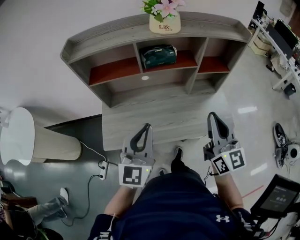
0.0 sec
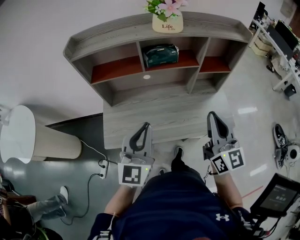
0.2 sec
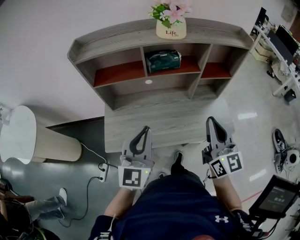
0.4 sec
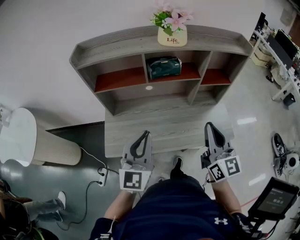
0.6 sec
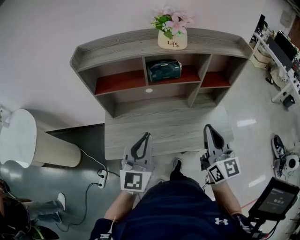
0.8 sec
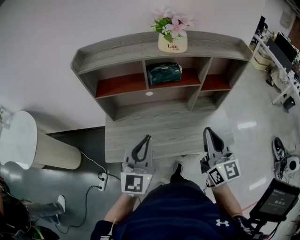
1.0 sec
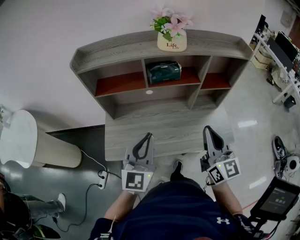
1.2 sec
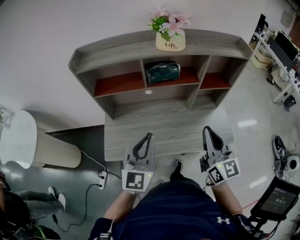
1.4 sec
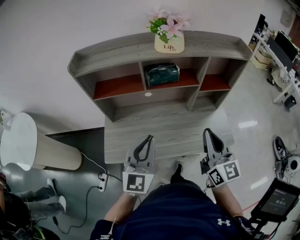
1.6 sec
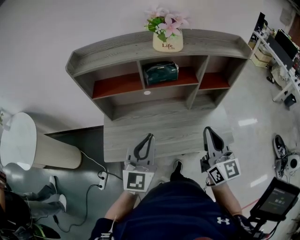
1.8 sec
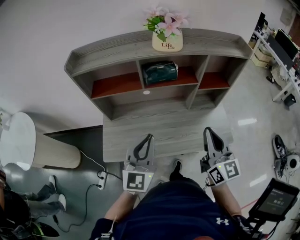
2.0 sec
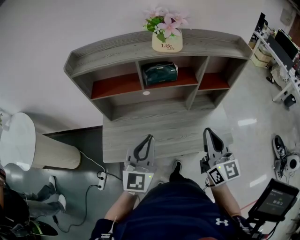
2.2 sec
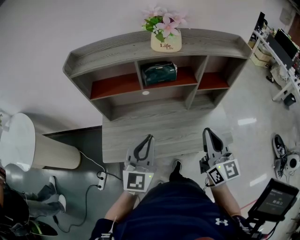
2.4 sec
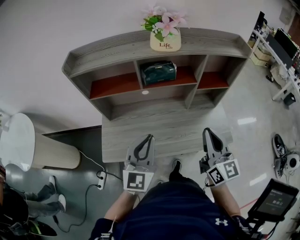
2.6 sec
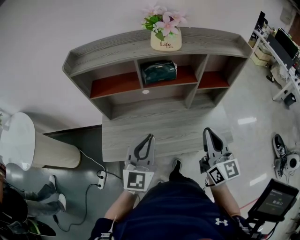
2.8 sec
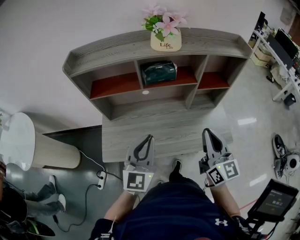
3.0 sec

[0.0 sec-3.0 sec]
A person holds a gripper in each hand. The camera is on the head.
0.0 sec to 3.0 sec: The grippers move only a little.

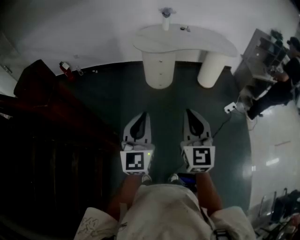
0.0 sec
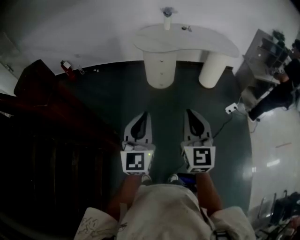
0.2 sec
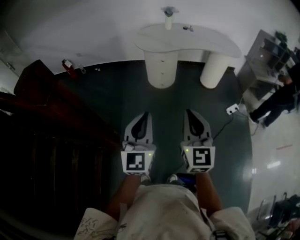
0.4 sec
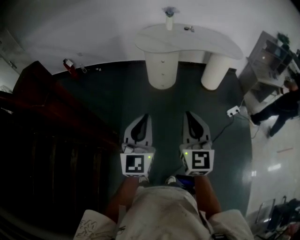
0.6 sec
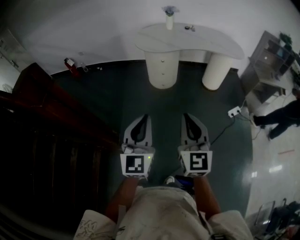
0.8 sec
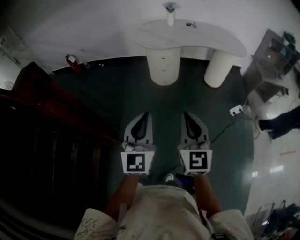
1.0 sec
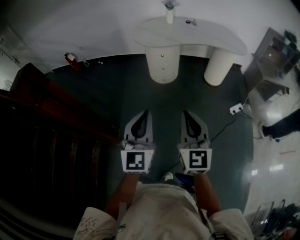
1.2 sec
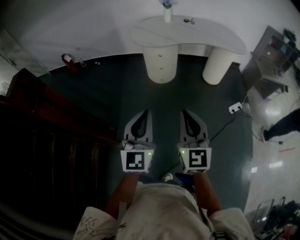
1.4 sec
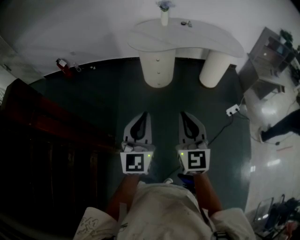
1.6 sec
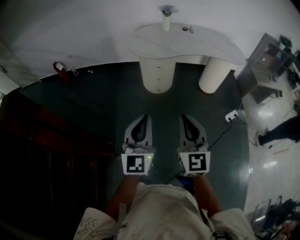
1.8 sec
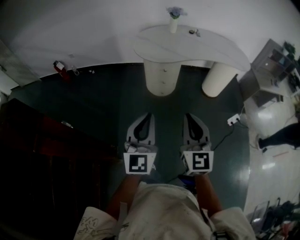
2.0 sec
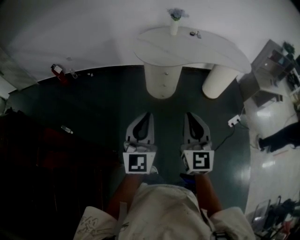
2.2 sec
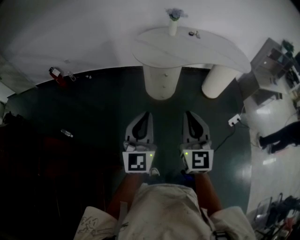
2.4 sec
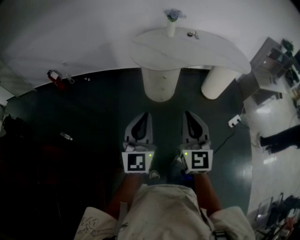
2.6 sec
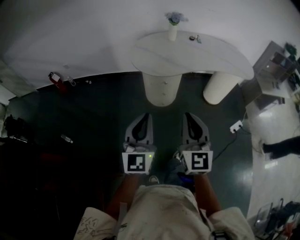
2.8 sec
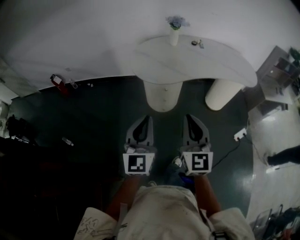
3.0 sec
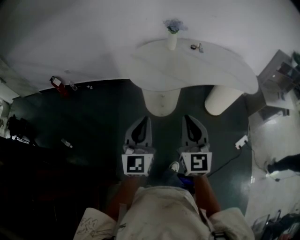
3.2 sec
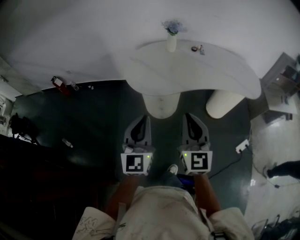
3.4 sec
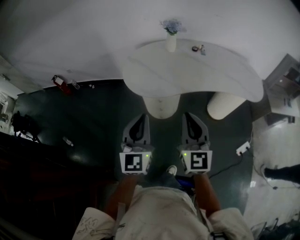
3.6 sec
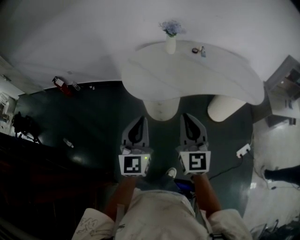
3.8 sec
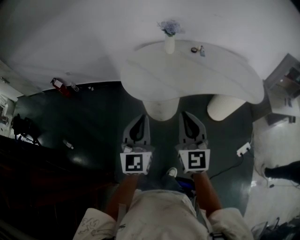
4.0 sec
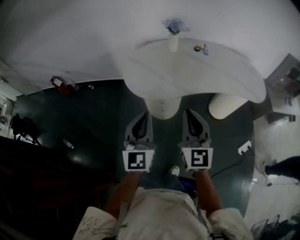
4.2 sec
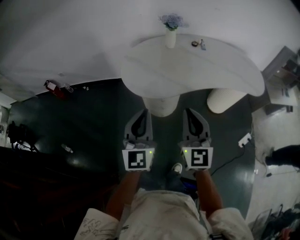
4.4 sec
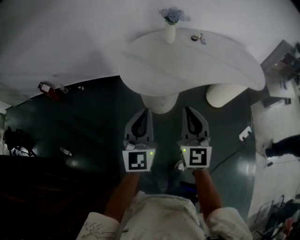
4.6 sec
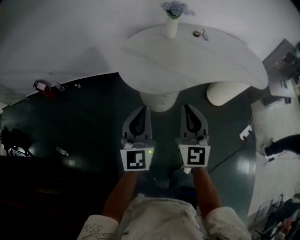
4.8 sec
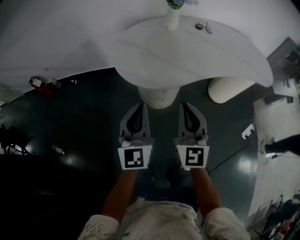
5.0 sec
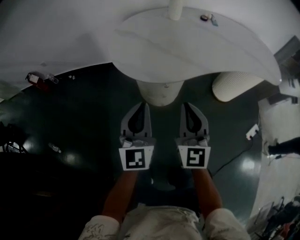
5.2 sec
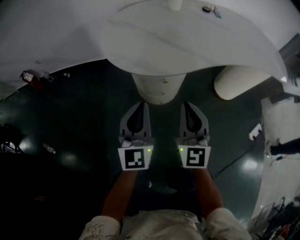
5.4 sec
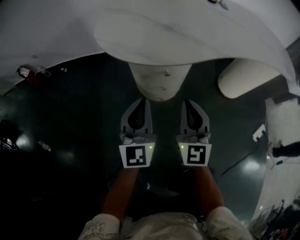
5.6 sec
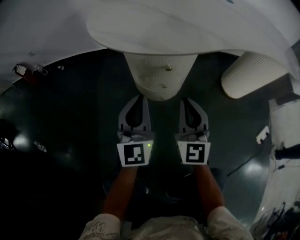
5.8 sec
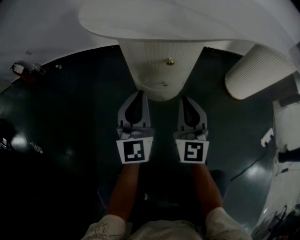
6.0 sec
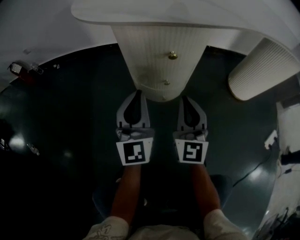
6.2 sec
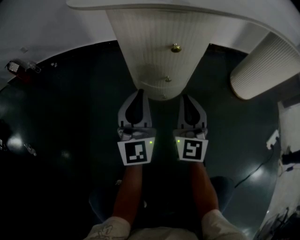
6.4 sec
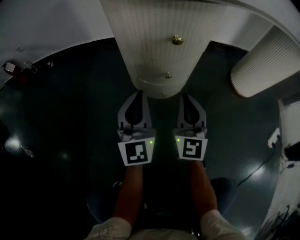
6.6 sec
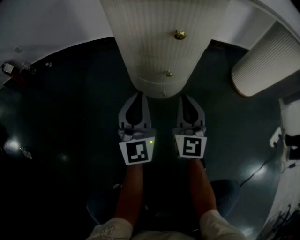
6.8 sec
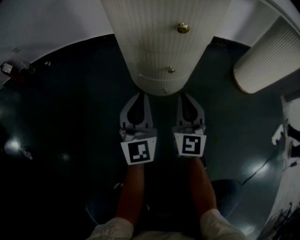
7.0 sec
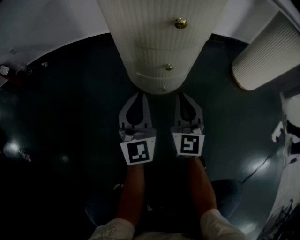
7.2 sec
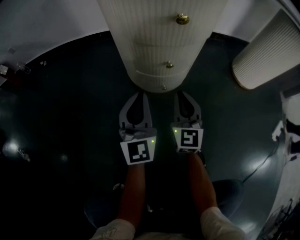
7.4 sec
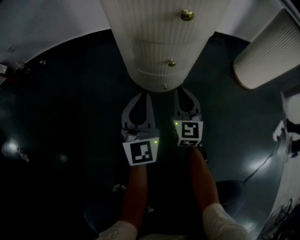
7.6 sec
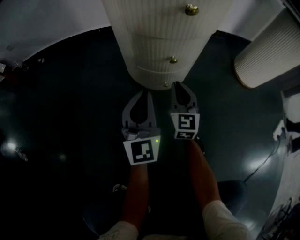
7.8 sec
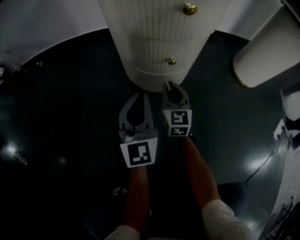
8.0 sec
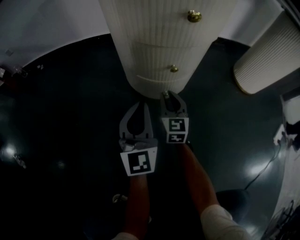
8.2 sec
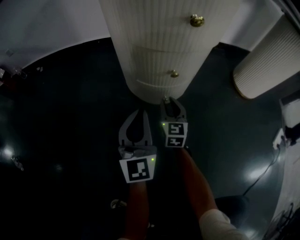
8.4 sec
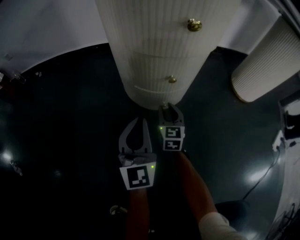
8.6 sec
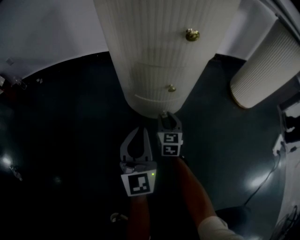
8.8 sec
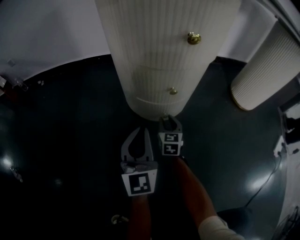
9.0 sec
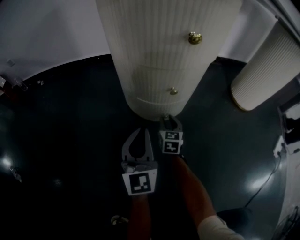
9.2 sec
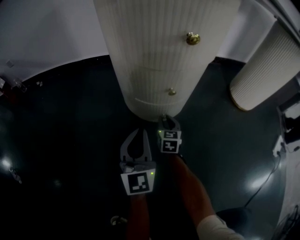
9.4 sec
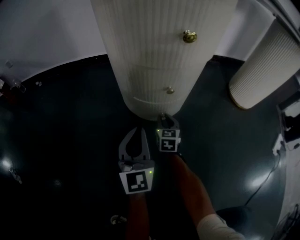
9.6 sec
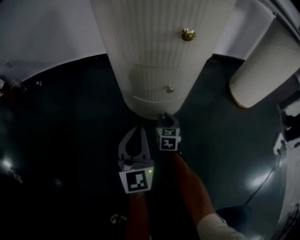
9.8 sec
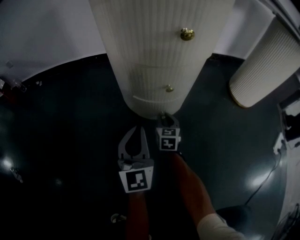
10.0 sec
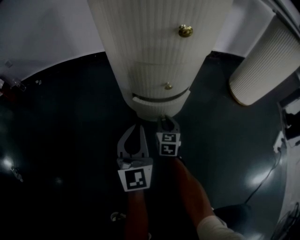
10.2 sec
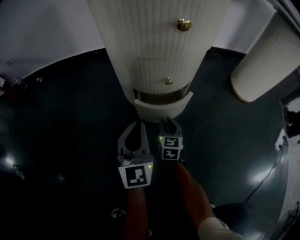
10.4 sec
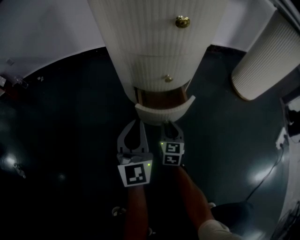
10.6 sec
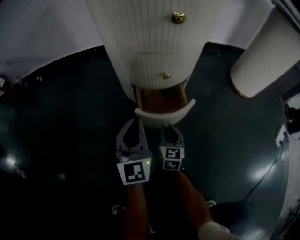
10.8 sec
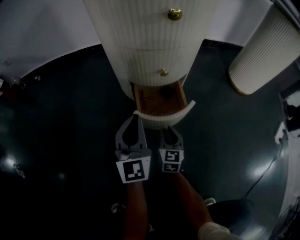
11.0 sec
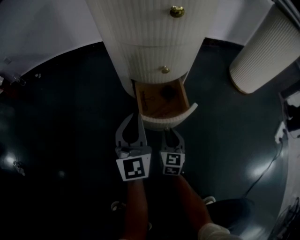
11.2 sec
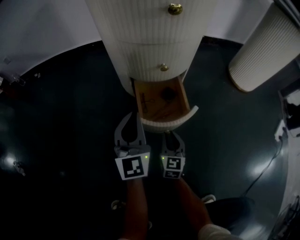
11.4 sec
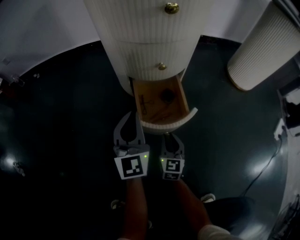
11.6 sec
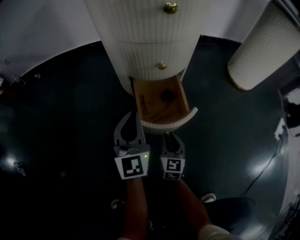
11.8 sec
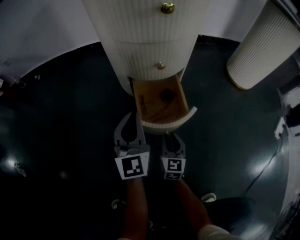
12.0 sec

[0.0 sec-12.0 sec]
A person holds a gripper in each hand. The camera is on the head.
0.0 sec to 1.6 sec: The grippers both shift forward and to the right by some 15 cm.
1.6 sec to 3.0 sec: The grippers both shift forward by approximately 30 cm.
3.0 sec to 4.4 sec: Both grippers move forward, some 20 cm.
4.4 sec to 6.0 sec: Both grippers move downward, roughly 50 cm.
6.0 sec to 7.6 sec: Both grippers move downward, about 25 cm.
7.6 sec to 9.0 sec: The right gripper is displaced downward by roughly 15 cm, changes its angle by some 20 degrees, and opens up.
9.0 sec to 10.4 sec: The grippers move only a little.
10.4 sec to 12.0 sec: The right gripper travels backward by approximately 15 cm.

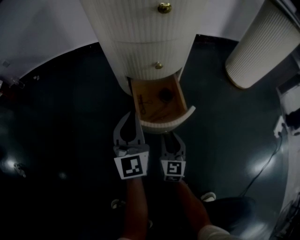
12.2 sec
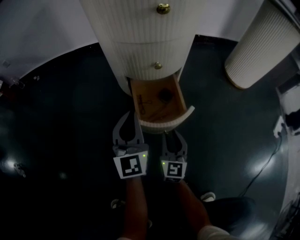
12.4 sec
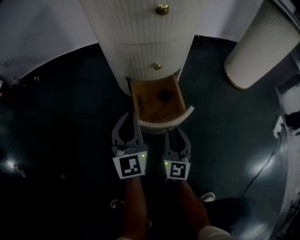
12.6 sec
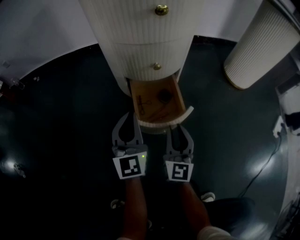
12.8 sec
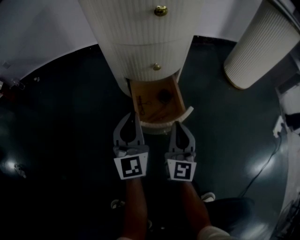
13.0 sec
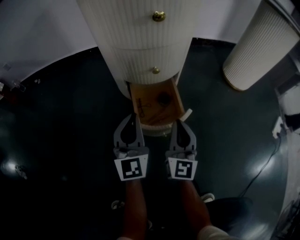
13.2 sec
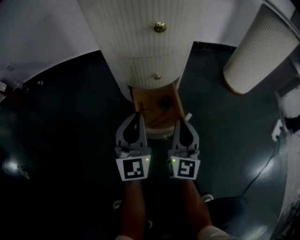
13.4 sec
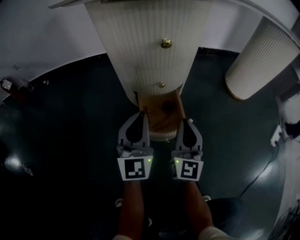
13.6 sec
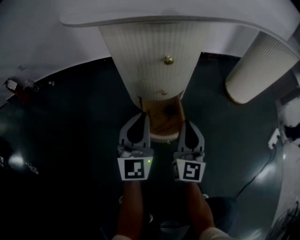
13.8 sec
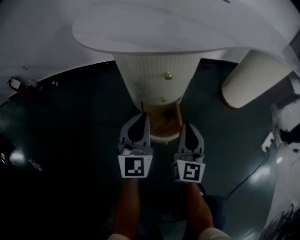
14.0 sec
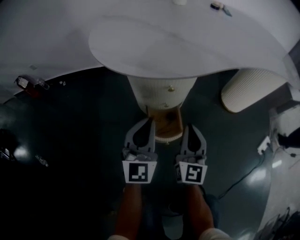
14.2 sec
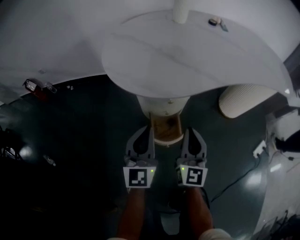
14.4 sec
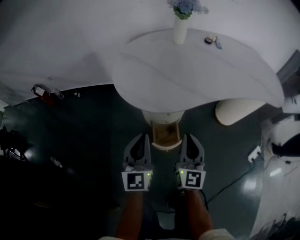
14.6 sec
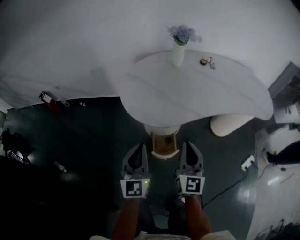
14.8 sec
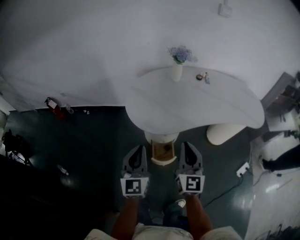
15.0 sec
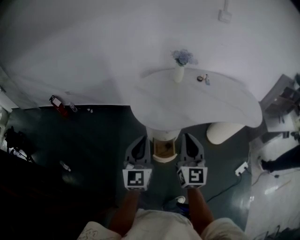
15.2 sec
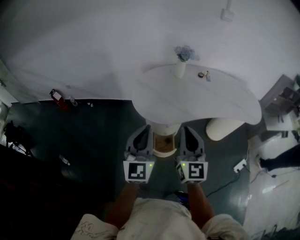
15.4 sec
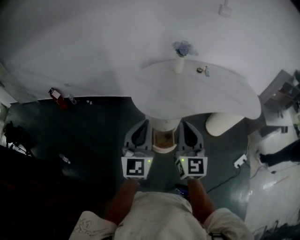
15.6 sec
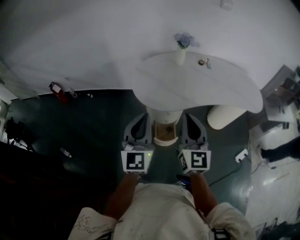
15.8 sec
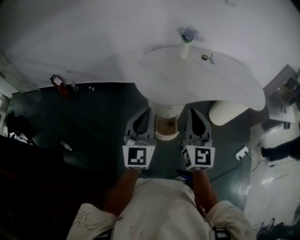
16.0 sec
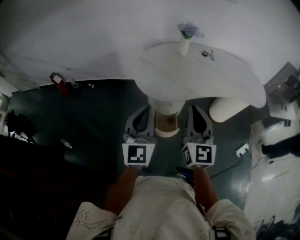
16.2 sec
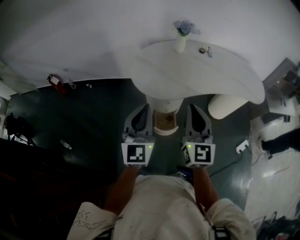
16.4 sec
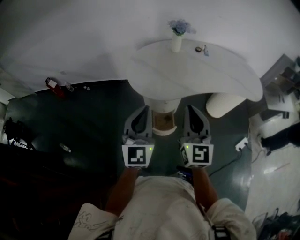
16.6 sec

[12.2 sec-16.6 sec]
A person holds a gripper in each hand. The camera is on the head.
12.2 sec to 13.6 sec: The right gripper shifts some 25 cm upward, swivels some 20 degrees, and closes; the left gripper heads upward, covering roughly 10 cm.
13.6 sec to 15.2 sec: The two grippers go about 70 cm upward.
15.2 sec to 16.6 sec: The grippers stay close to where they were, moving slightly.

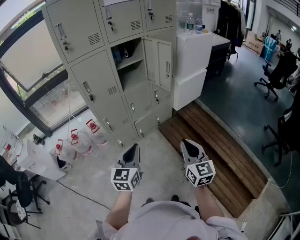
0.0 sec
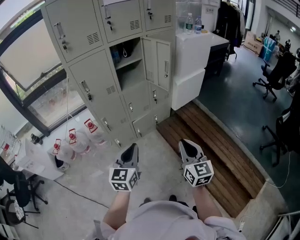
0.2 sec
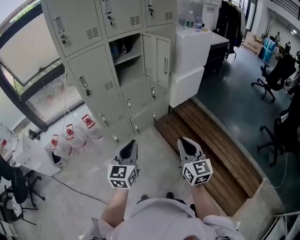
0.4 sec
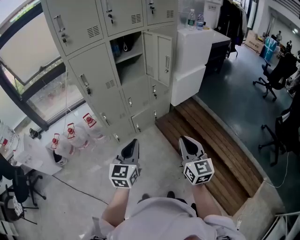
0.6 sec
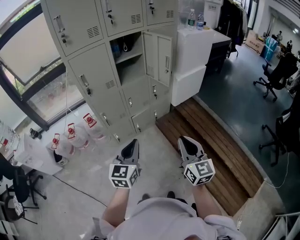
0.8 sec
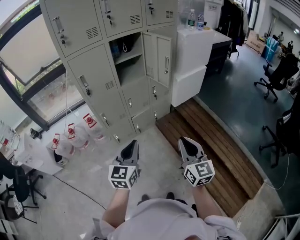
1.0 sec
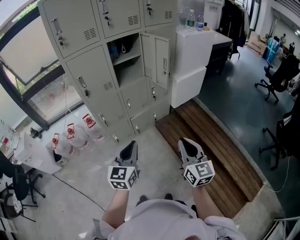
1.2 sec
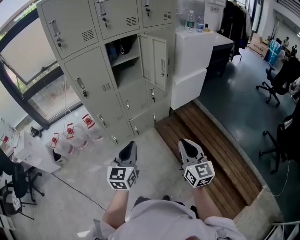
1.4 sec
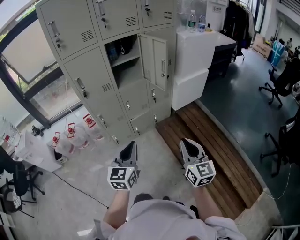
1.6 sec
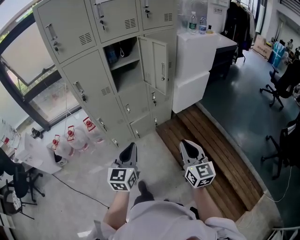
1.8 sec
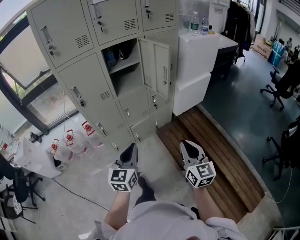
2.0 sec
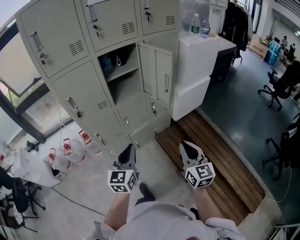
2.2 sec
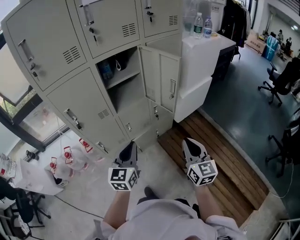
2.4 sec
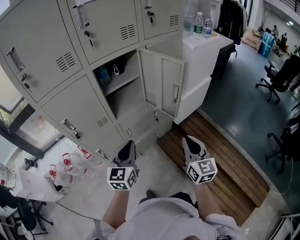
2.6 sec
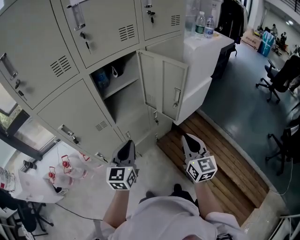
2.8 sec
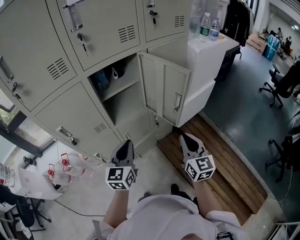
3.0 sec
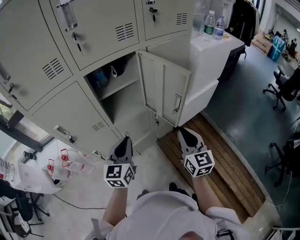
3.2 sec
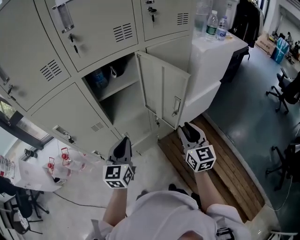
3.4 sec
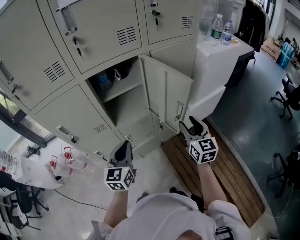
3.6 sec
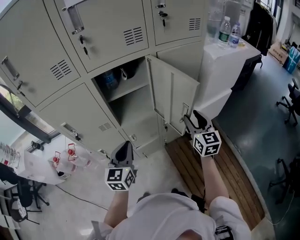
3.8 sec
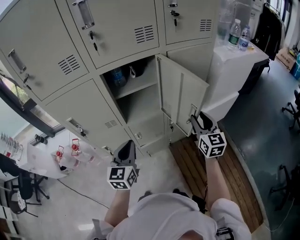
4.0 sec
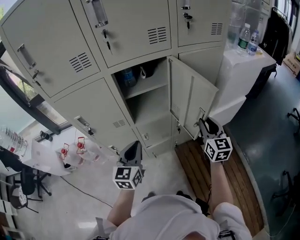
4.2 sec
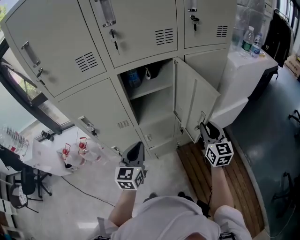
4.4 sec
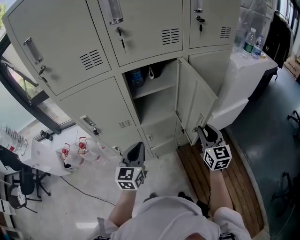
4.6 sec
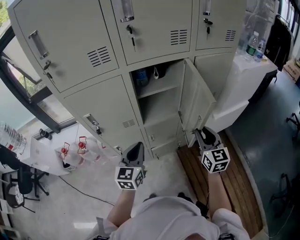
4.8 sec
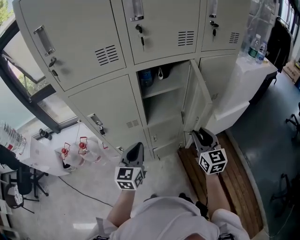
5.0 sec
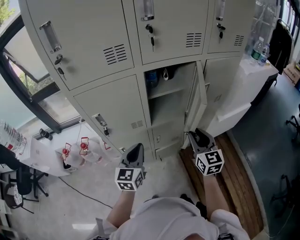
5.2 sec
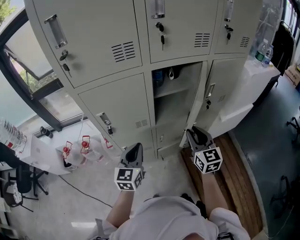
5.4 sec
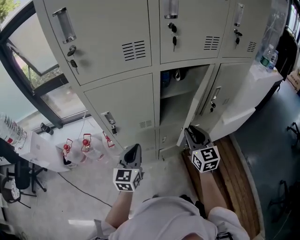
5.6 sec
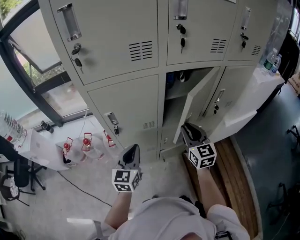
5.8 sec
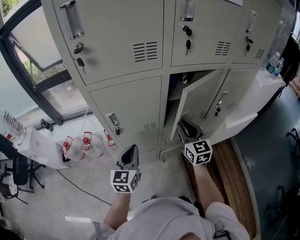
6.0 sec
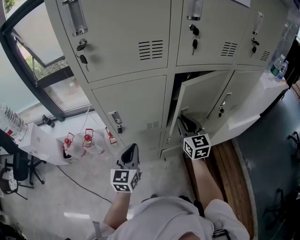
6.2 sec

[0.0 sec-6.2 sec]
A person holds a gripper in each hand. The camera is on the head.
0.0 sec to 1.6 sec: Both grippers travel together to the right, some 5 cm.
1.6 sec to 3.2 sec: The grippers both shift forward by roughly 40 cm.
3.2 sec to 4.6 sec: The left gripper heads to the left, covering approximately 5 cm. The right gripper is displaced forward by about 10 cm, and opens, then closes again.
4.6 sec to 6.2 sec: The left gripper heads to the left, covering about 20 cm. Meanwhile the right gripper shifts some 30 cm to the left and forward.
